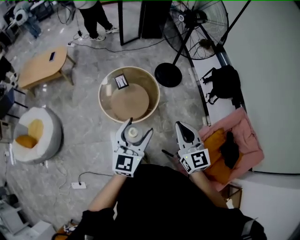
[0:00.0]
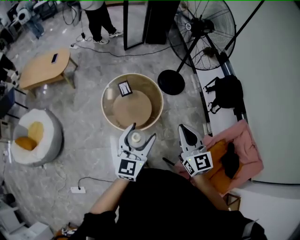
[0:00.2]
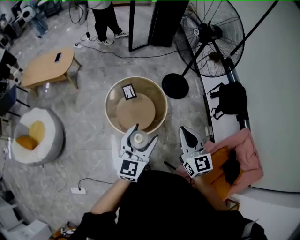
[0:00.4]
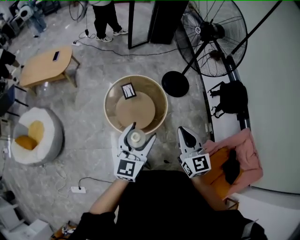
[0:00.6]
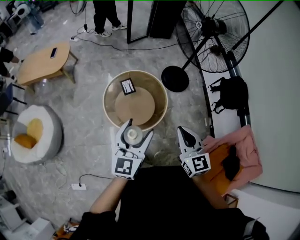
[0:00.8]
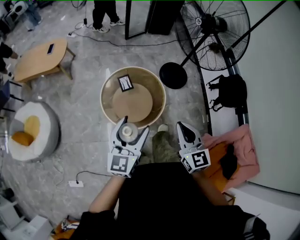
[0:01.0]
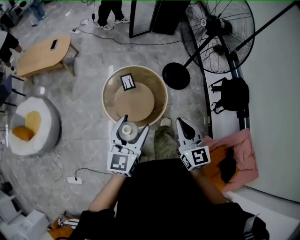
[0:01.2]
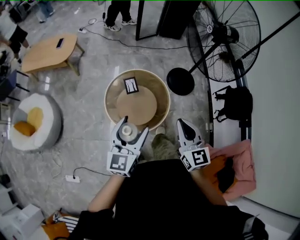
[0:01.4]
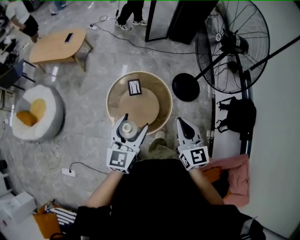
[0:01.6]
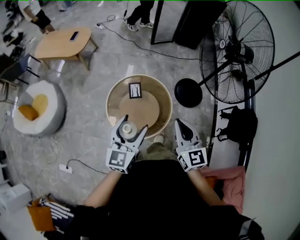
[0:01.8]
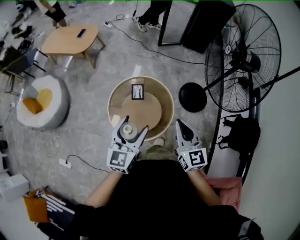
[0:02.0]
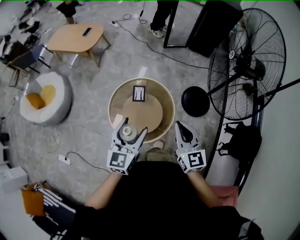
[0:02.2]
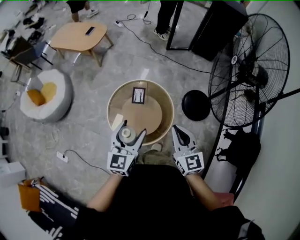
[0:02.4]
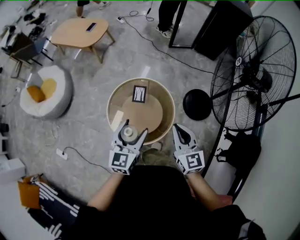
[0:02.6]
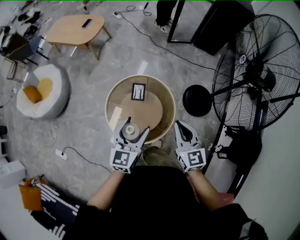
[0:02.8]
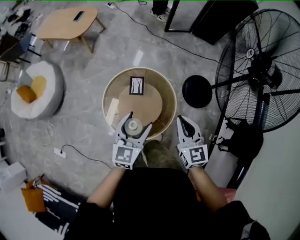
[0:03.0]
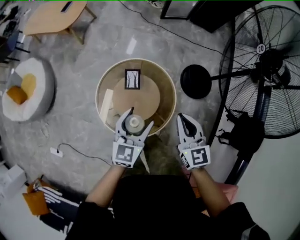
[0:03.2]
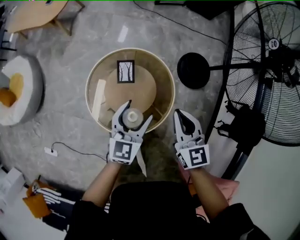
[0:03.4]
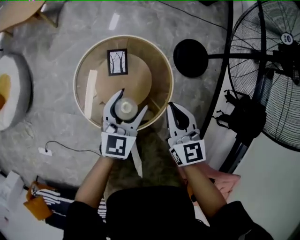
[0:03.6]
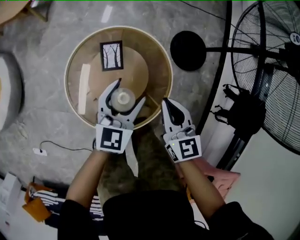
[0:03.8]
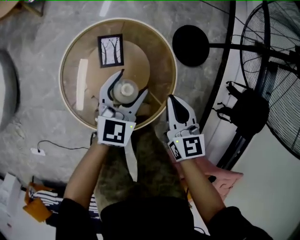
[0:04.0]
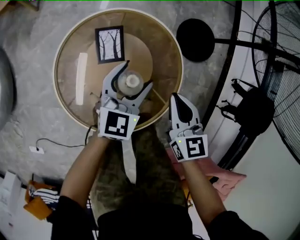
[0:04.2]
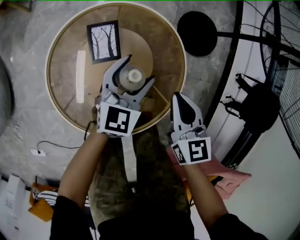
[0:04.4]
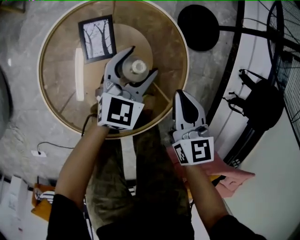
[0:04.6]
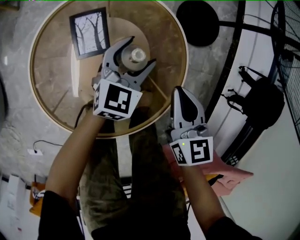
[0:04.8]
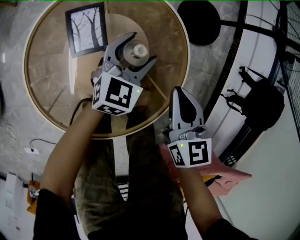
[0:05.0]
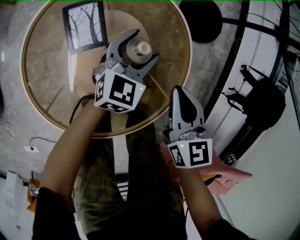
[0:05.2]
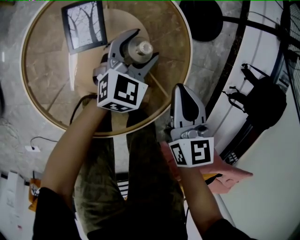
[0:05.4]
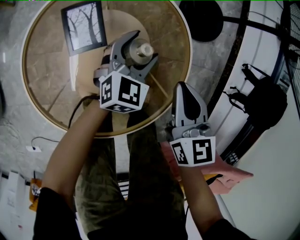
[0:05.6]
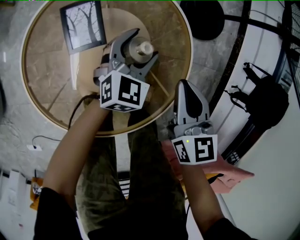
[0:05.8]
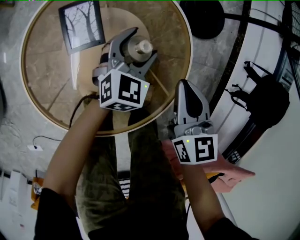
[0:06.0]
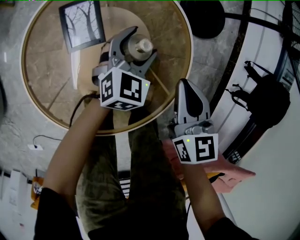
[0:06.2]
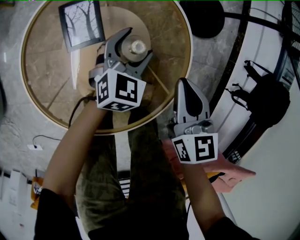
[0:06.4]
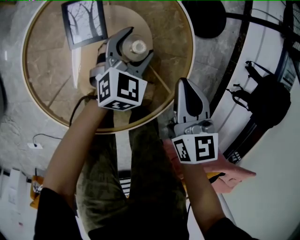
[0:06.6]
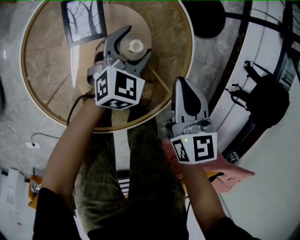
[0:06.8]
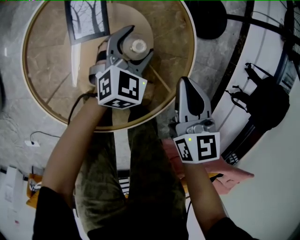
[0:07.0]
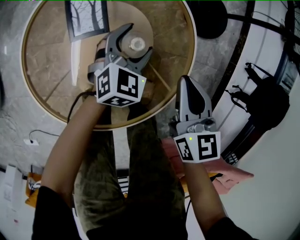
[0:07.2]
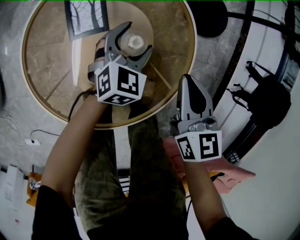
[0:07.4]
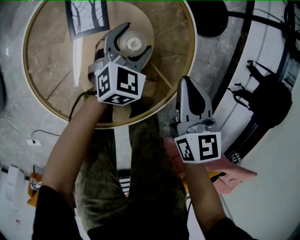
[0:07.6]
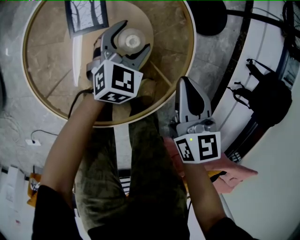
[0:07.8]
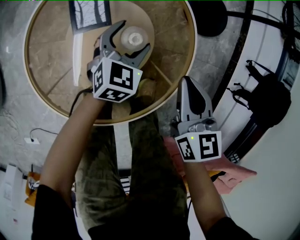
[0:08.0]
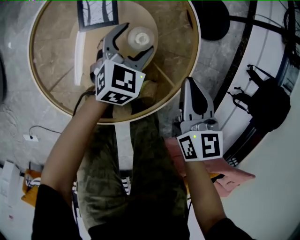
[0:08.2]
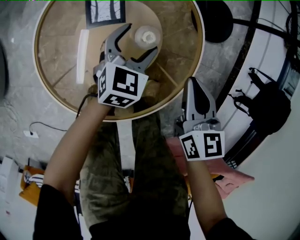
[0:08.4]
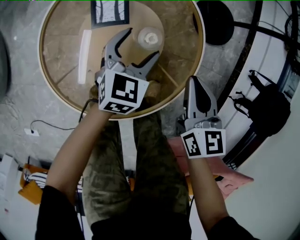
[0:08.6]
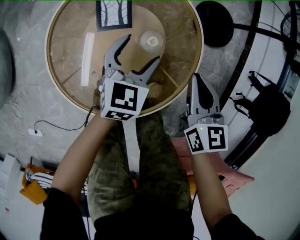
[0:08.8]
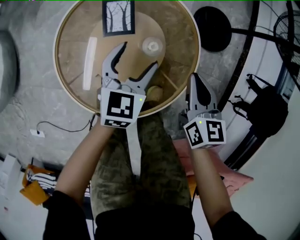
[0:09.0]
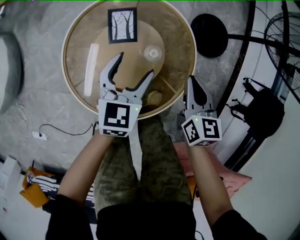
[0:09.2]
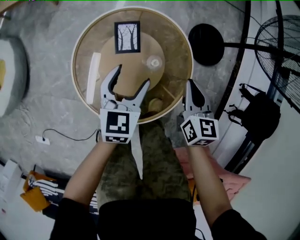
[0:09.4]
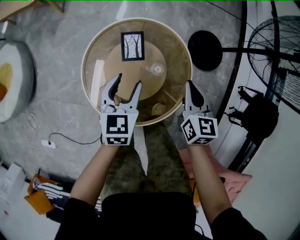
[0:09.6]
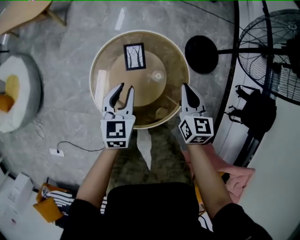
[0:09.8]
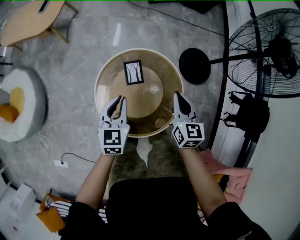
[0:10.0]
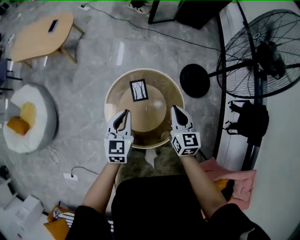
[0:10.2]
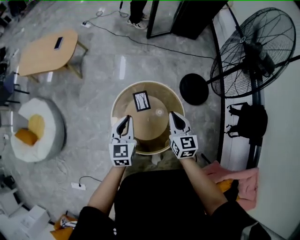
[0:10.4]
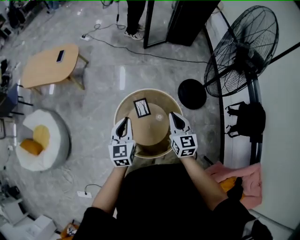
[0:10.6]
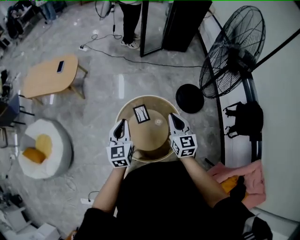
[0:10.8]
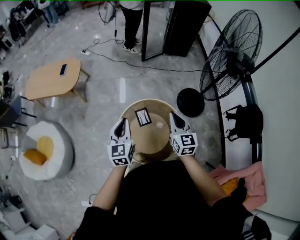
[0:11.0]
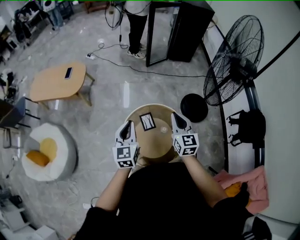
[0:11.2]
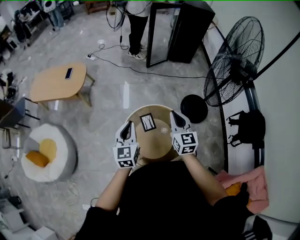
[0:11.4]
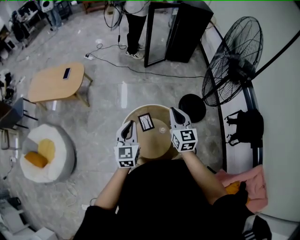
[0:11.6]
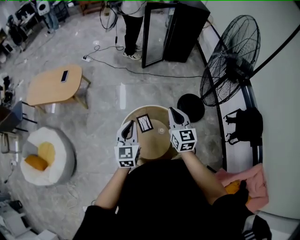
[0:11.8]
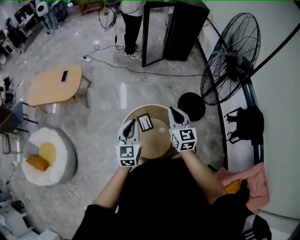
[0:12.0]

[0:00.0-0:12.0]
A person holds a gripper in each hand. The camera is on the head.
0:00.0 to 0:01.6: The two grippers go approximately 25 cm forward.
0:01.6 to 0:03.0: Both grippers travel together forward, downward and to the right, about 25 cm.
0:03.0 to 0:04.4: The grippers both shift downward by approximately 40 cm. The left gripper rotates some 20 degrees, while the right gripper rotates approximately 20 degrees.
0:04.4 to 0:06.0: The right gripper goes about 5 cm downward; the left gripper goes roughly 15 cm downward and to the right.
0:06.0 to 0:07.6: The grippers move only a little.
0:07.6 to 0:09.0: The right gripper goes approximately 5 cm upward. The left gripper travels upward and to the left by some 15 cm, and swivels approximately 20 degrees.
0:09.0 to 0:10.4: Both grippers travel together upward and to the left, roughly 40 cm. The left gripper closes its fingers.
0:10.4 to 0:12.0: The two grippers go about 15 cm upward.

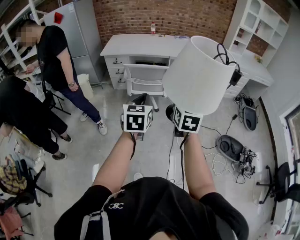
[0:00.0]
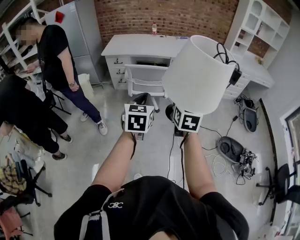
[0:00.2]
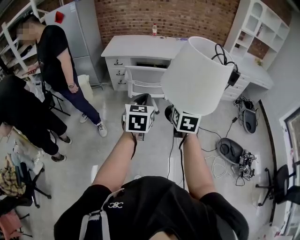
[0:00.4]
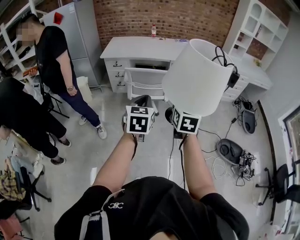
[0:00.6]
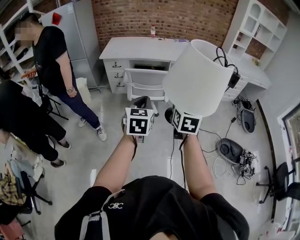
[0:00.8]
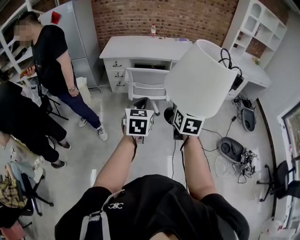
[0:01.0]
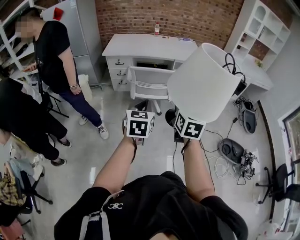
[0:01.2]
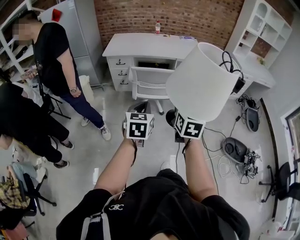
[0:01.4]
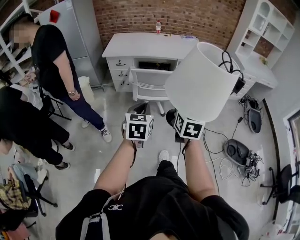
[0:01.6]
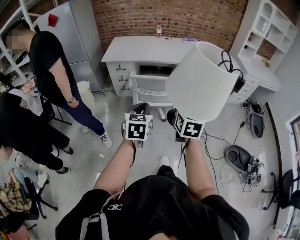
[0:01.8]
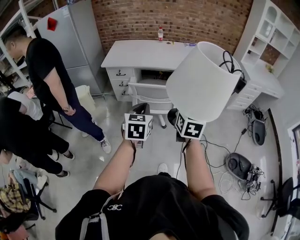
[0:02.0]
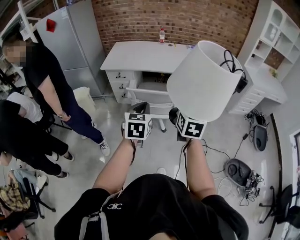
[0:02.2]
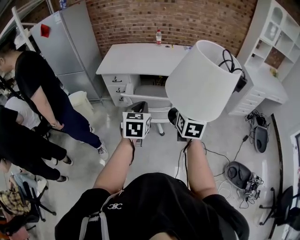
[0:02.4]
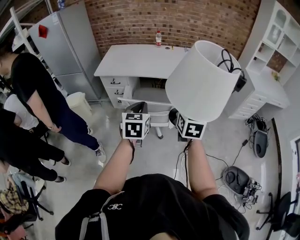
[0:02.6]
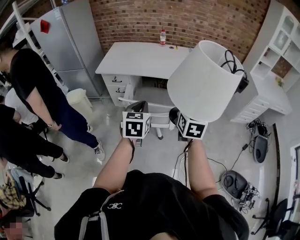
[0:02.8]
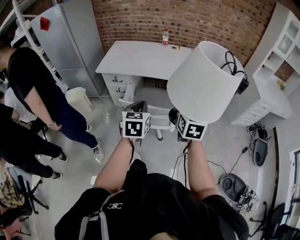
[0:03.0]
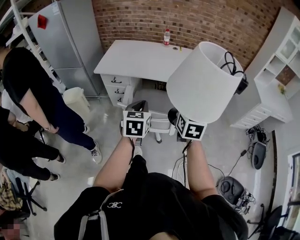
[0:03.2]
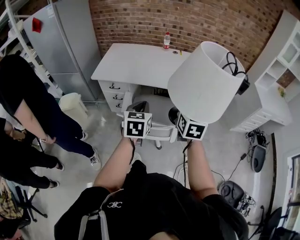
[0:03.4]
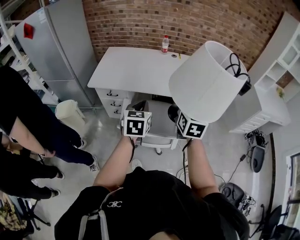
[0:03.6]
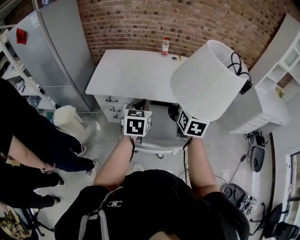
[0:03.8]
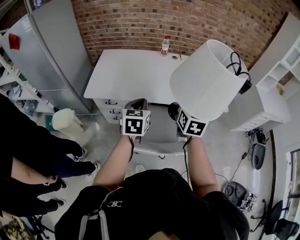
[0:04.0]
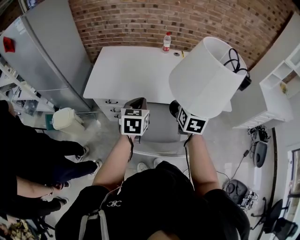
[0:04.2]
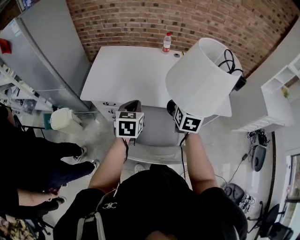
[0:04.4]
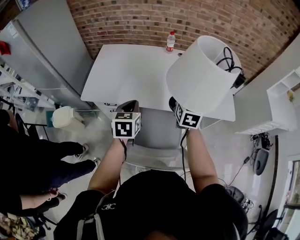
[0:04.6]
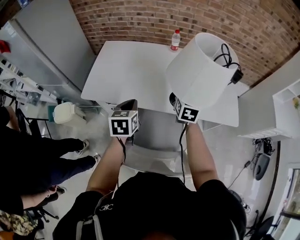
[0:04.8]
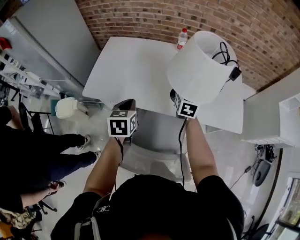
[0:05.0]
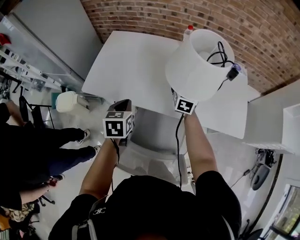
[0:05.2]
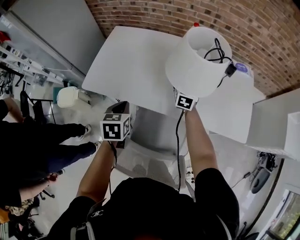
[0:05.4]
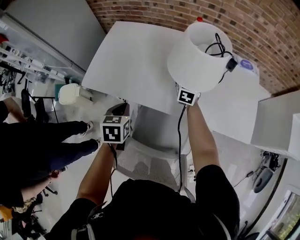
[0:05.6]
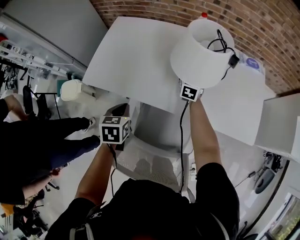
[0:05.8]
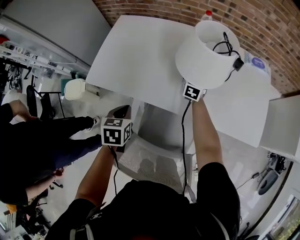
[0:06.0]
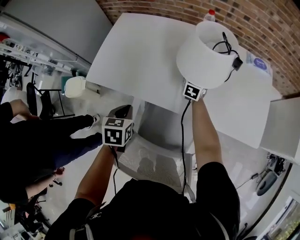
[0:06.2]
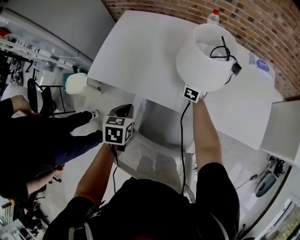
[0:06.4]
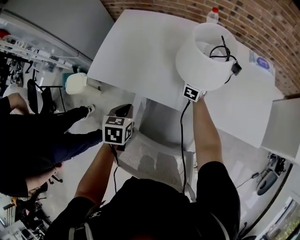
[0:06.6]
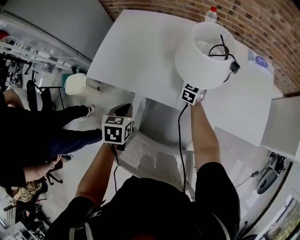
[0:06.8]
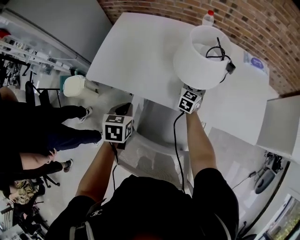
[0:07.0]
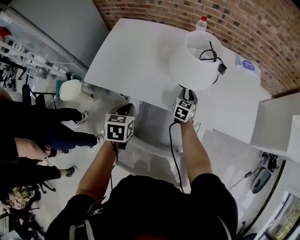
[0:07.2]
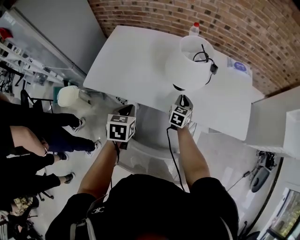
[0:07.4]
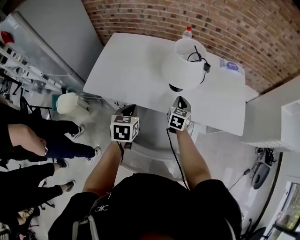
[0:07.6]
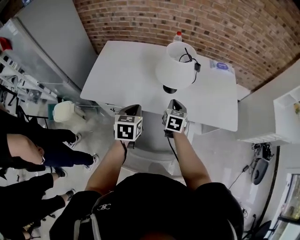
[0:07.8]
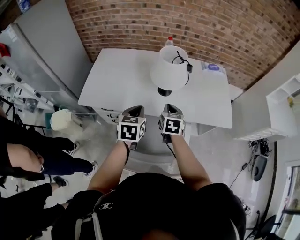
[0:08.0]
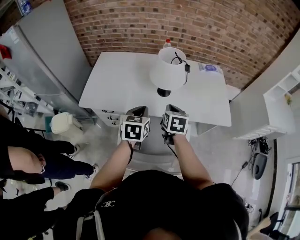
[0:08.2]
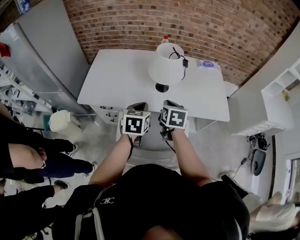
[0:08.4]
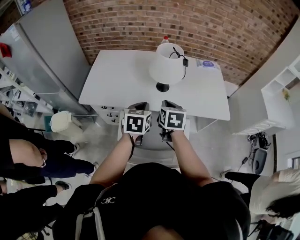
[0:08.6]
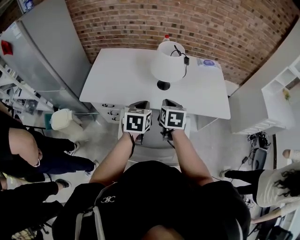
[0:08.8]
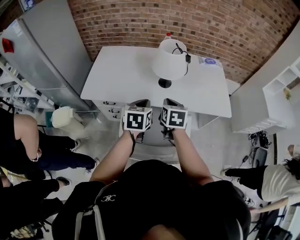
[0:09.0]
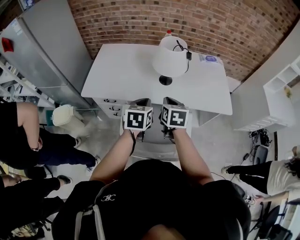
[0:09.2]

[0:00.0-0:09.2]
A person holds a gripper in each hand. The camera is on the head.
0:00.0 to 0:01.6: The left gripper moves to the left, forward and downward, about 15 cm. Meanwhile the right gripper is displaced to the left and forward by approximately 15 cm.
0:01.6 to 0:03.0: Both grippers move forward, approximately 35 cm.
0:03.0 to 0:04.6: The two grippers travel together, forward, about 40 cm.
0:04.6 to 0:06.2: The left gripper heads downward, covering some 15 cm, and rotates about 20 degrees; the right gripper heads forward and downward, covering roughly 35 cm.
0:06.2 to 0:07.6: The left gripper is displaced upward by approximately 5 cm, while the right gripper heads backward, covering roughly 20 cm, and closes up.
0:07.6 to 0:09.2: The left gripper heads to the right, upward and backward, covering about 10 cm; the right gripper travels backward and upward by approximately 20 cm.

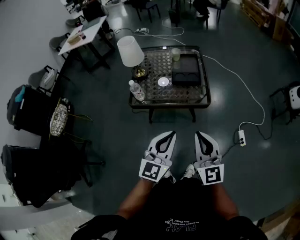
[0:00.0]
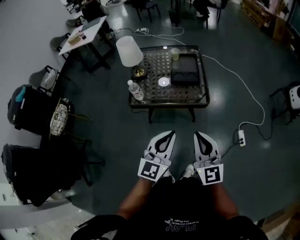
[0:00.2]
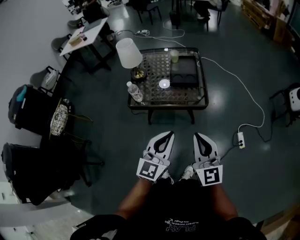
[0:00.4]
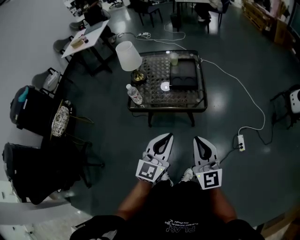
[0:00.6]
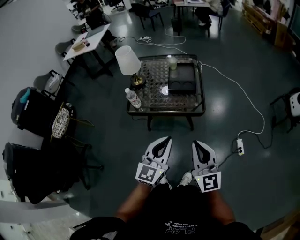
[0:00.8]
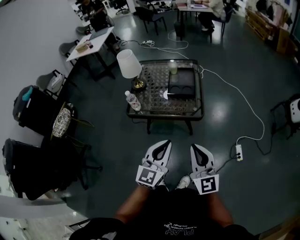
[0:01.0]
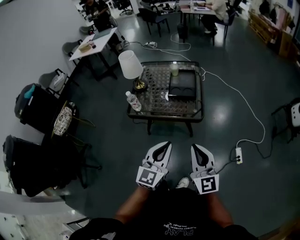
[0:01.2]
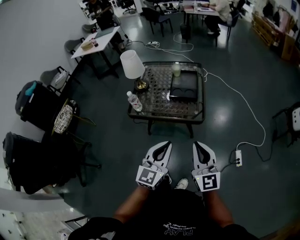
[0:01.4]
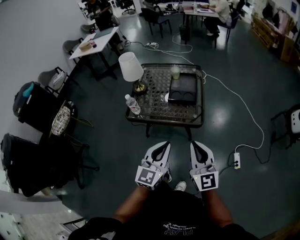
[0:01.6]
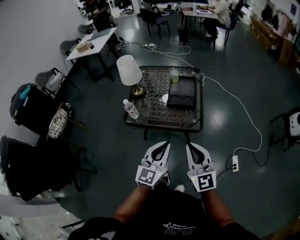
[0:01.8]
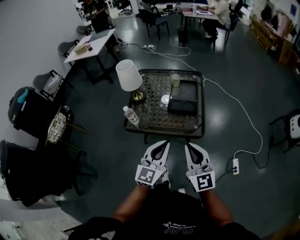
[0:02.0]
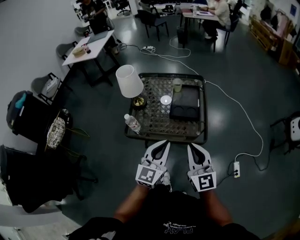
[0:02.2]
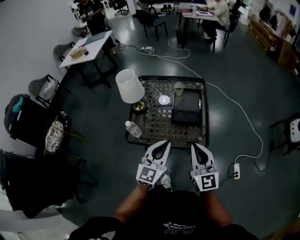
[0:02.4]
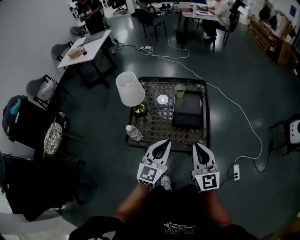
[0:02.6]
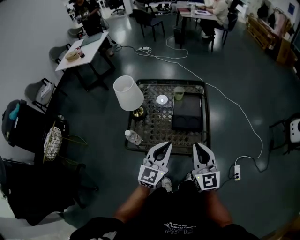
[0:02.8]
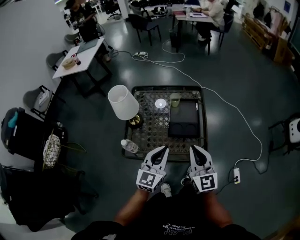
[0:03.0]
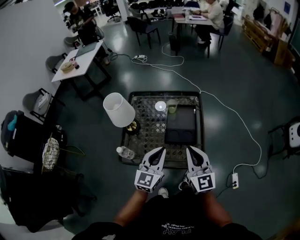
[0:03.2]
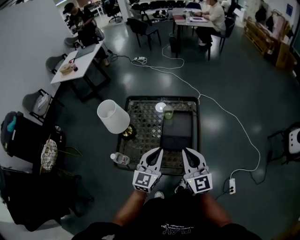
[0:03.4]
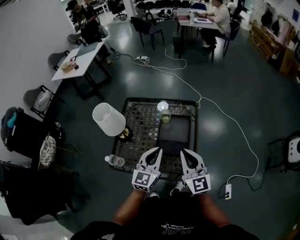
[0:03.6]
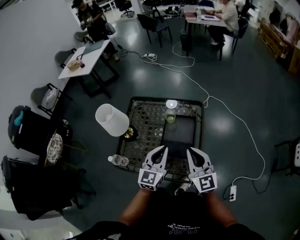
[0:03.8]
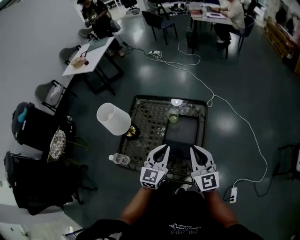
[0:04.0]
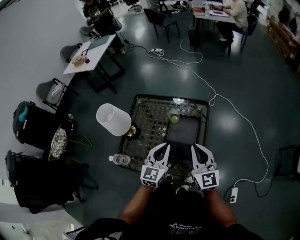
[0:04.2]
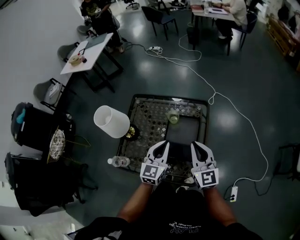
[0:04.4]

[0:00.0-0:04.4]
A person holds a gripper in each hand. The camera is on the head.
0:00.0 to 0:01.4: Both grippers move to the right, some 5 cm.
0:01.4 to 0:03.0: Both grippers move forward, approximately 30 cm.
0:03.0 to 0:04.4: Both grippers travel together forward and to the right, roughly 20 cm.
